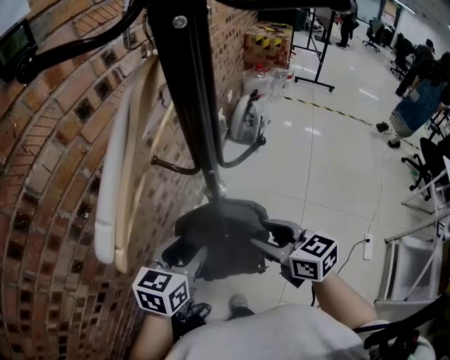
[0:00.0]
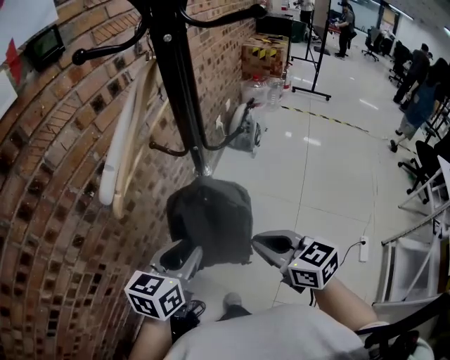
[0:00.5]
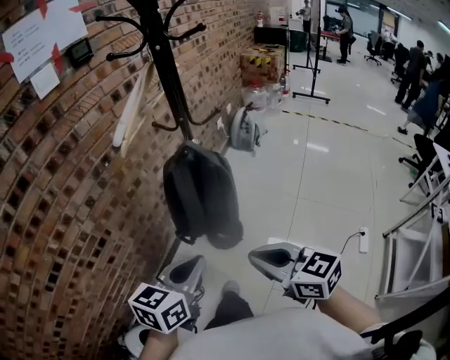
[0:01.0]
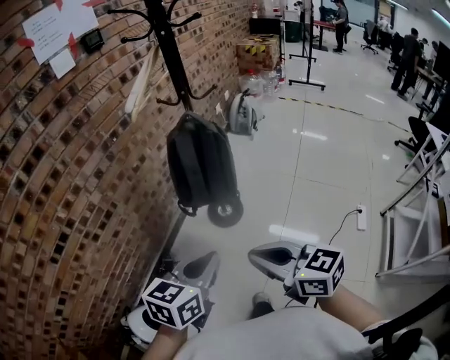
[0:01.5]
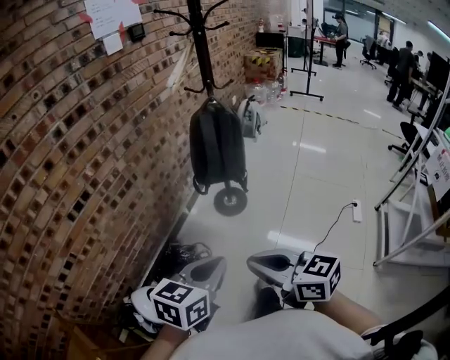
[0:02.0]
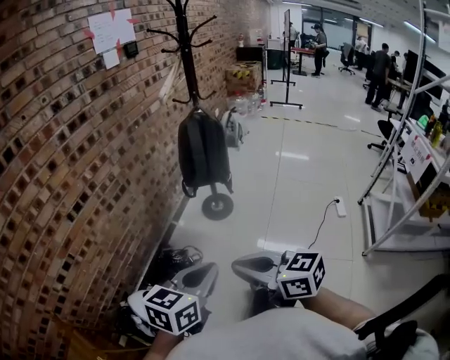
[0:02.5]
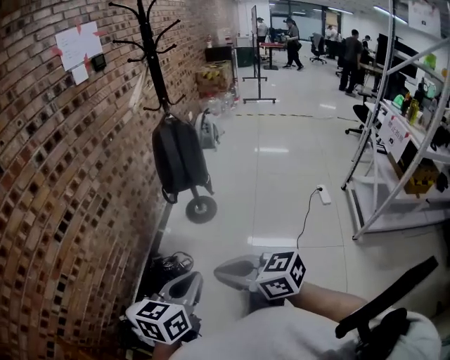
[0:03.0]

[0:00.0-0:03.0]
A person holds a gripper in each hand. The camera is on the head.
0:00.0 to 0:01.5: The two grippers travel together, backward, roughly 50 cm. The left gripper closes its fingers. The right gripper closes its fingers.
0:01.5 to 0:03.0: Both grippers move backward and to the left, some 30 cm.

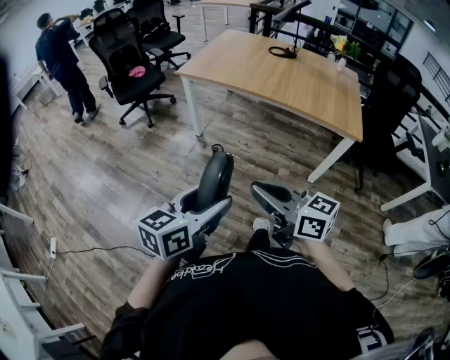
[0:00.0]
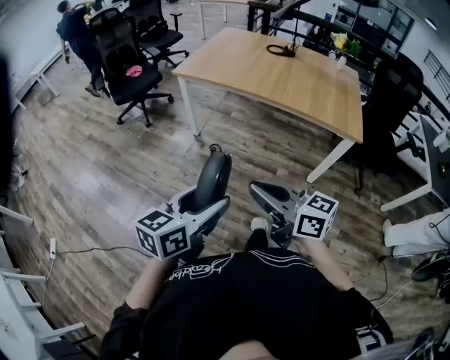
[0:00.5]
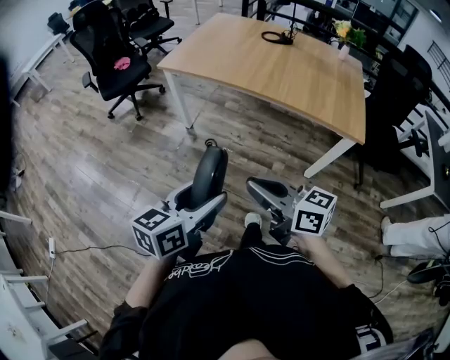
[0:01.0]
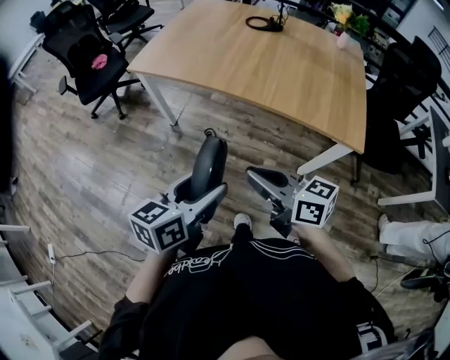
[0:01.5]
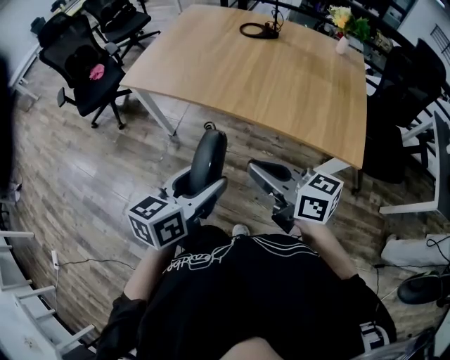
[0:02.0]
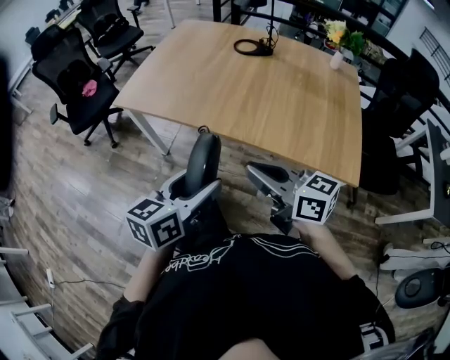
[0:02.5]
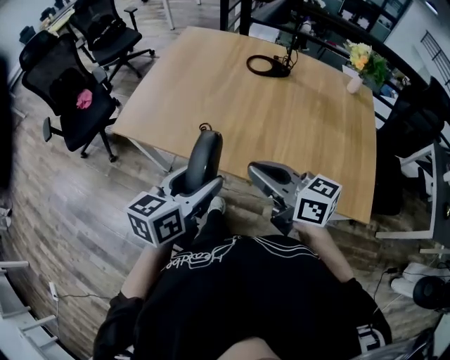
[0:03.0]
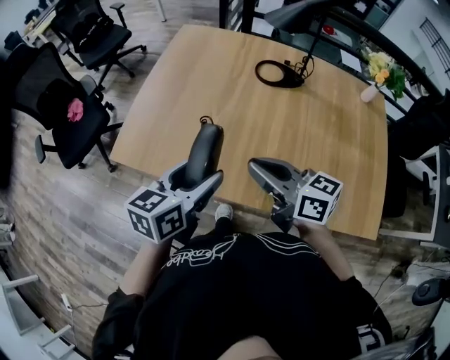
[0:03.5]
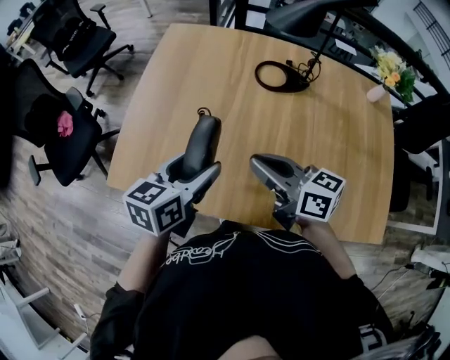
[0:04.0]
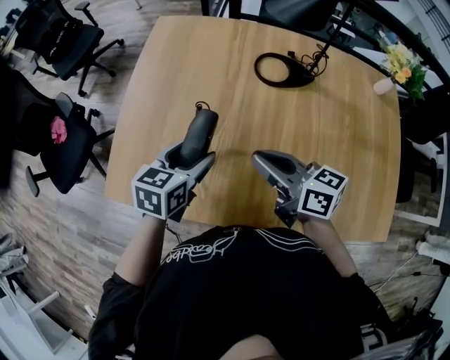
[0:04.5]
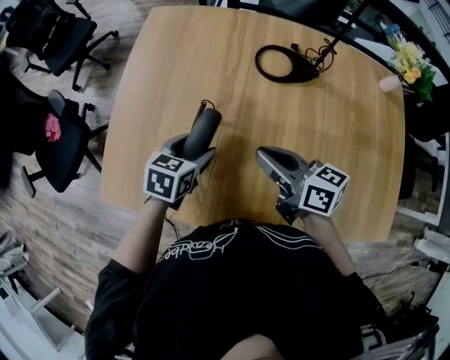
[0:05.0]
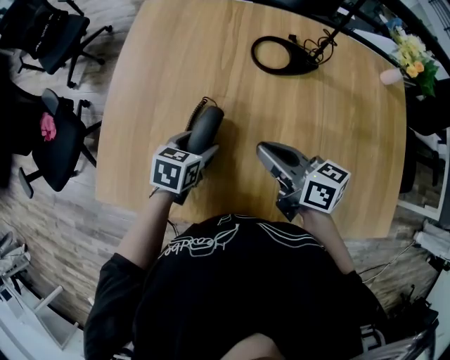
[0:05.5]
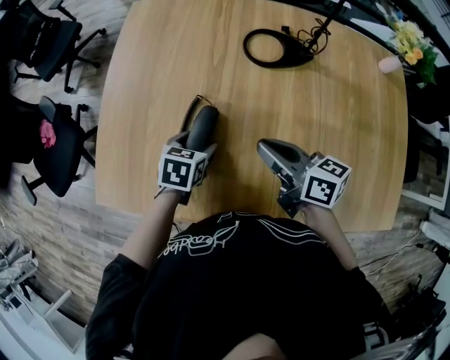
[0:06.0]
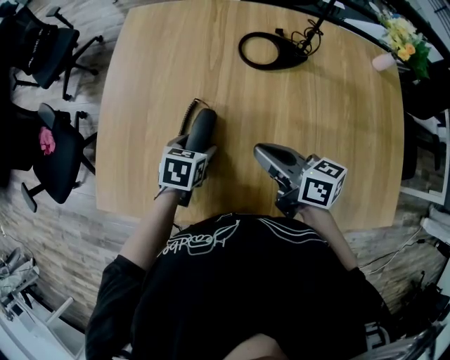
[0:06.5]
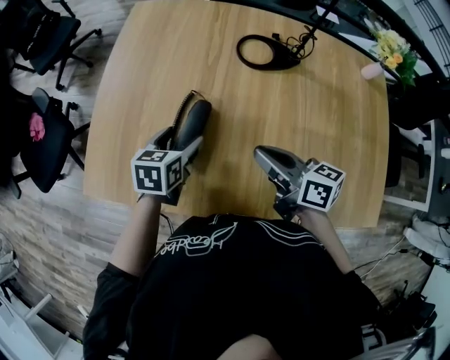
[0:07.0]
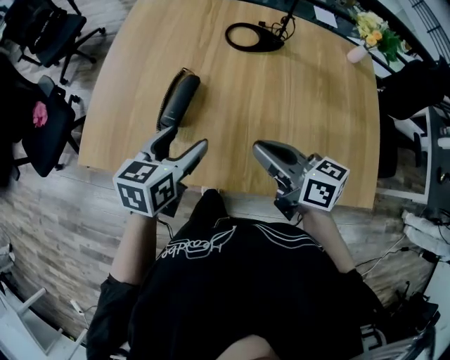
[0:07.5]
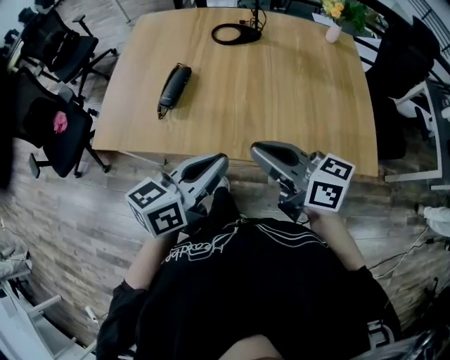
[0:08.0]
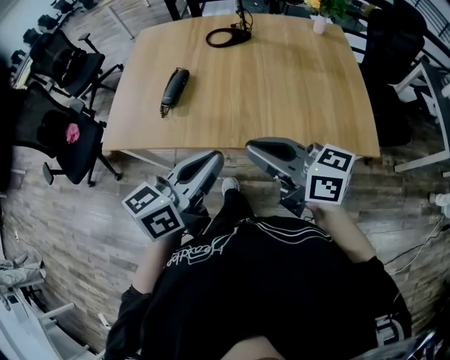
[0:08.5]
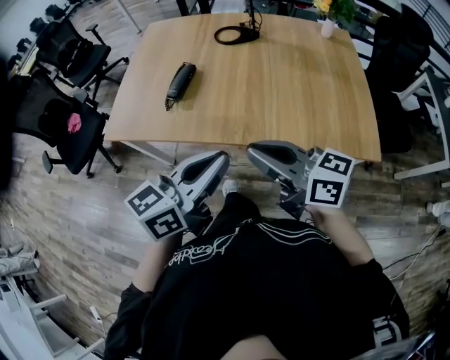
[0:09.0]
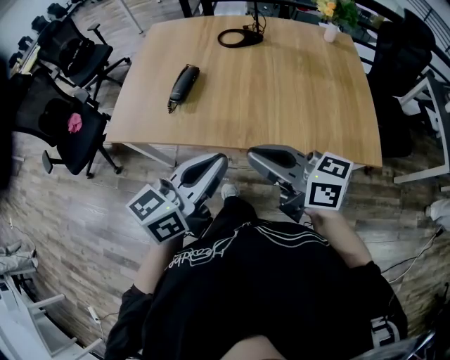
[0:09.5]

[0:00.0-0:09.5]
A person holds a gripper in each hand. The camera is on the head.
0:00.0 to 0:02.0: Both grippers move forward and to the right, roughly 40 cm.
0:02.0 to 0:04.0: Both grippers are carried forward, roughly 50 cm.
0:04.0 to 0:05.5: The right gripper moves downward and forward, some 10 cm. The left gripper is displaced downward and forward by some 20 cm, and swivels roughly 30 degrees.
0:05.5 to 0:07.5: The right gripper moves backward, approximately 15 cm. Meanwhile the left gripper moves upward and backward, some 20 cm.
0:07.5 to 0:09.5: Both grippers travel together backward and upward, approximately 25 cm. The left gripper swivels some 30 degrees, and closes up.

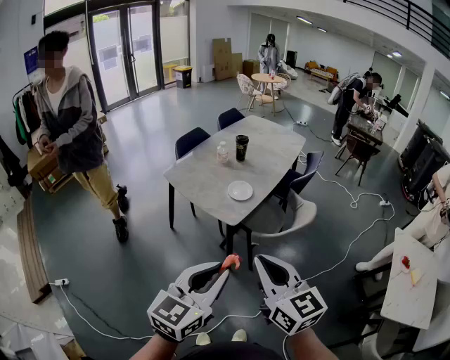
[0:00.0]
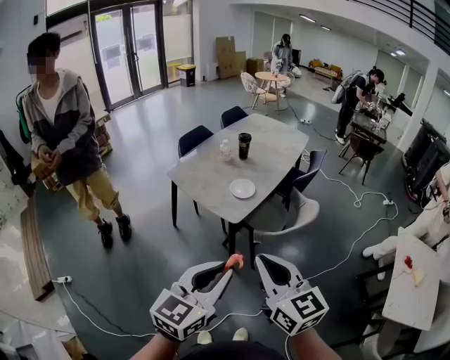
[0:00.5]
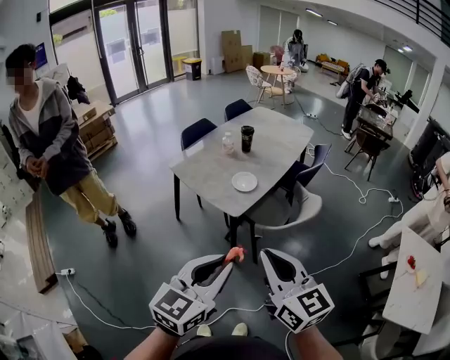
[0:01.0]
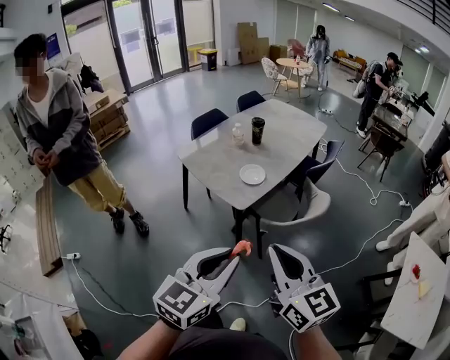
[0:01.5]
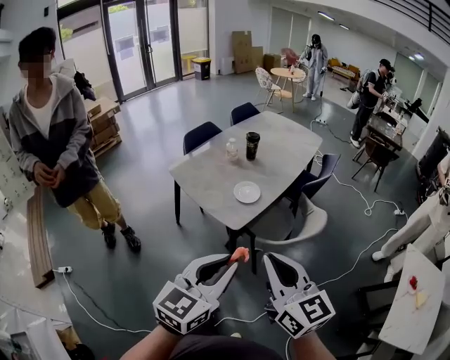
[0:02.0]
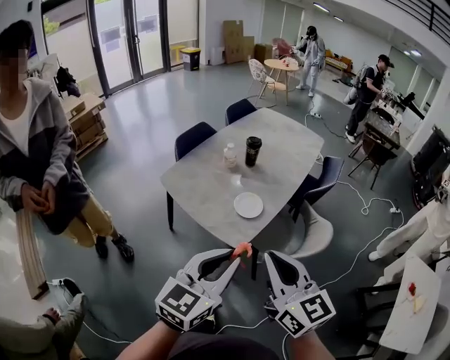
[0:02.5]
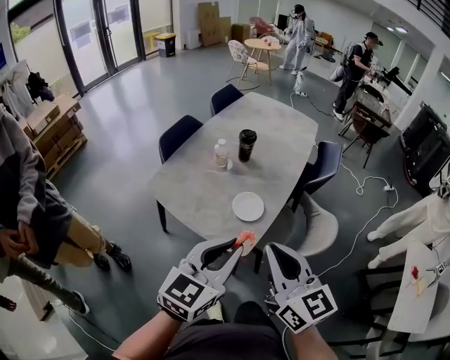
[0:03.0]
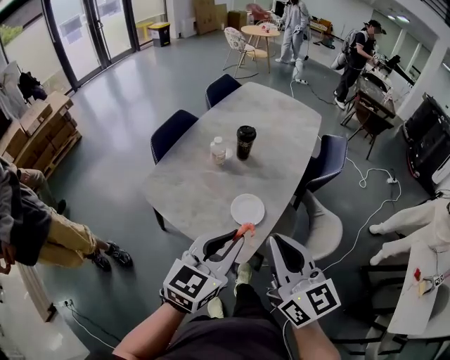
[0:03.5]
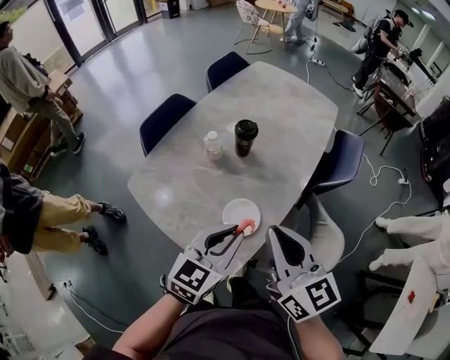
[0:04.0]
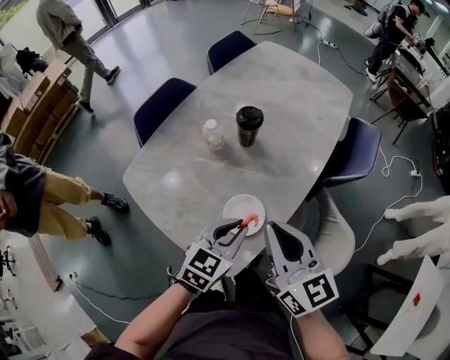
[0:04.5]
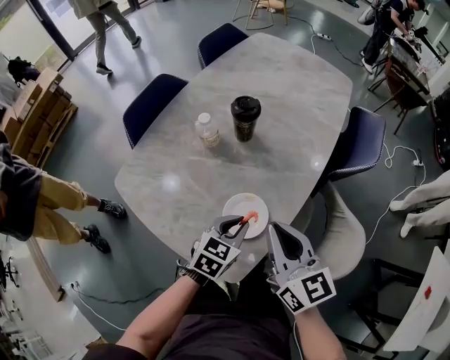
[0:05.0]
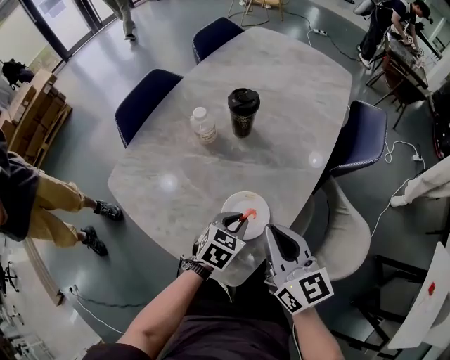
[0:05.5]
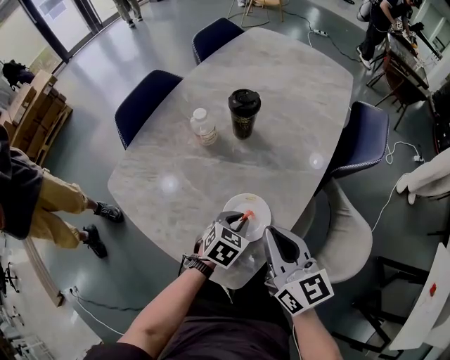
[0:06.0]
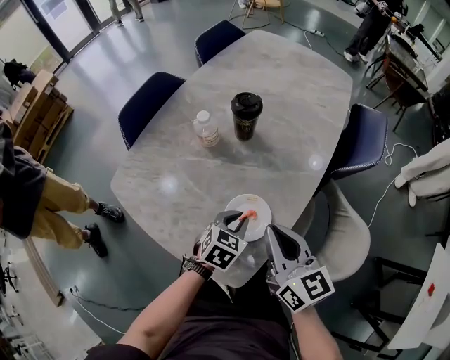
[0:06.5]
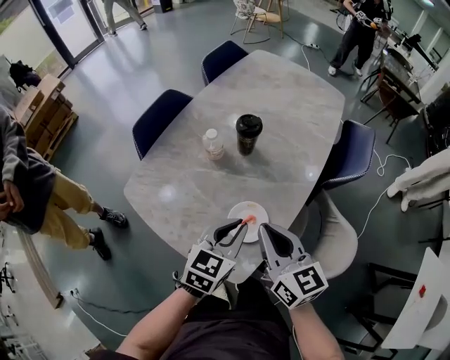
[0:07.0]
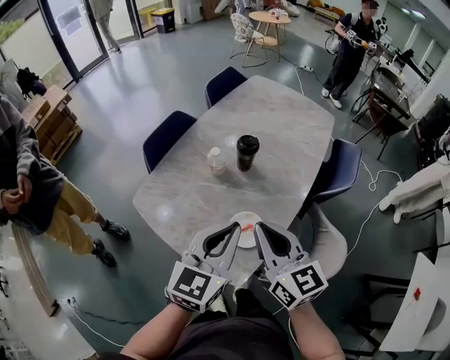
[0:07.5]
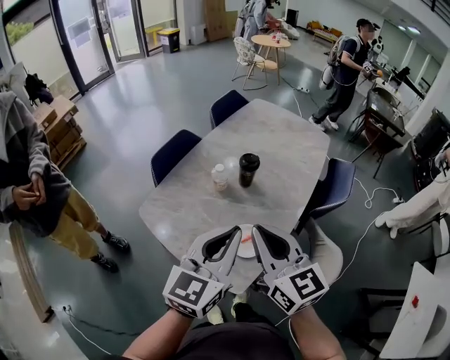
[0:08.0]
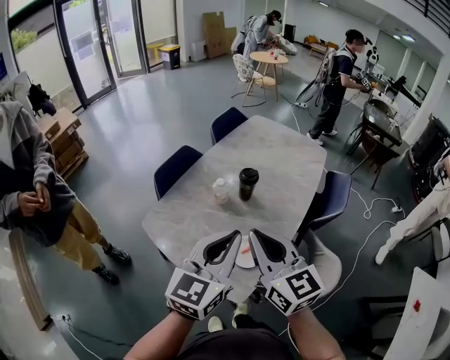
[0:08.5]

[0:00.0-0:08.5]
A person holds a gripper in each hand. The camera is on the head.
0:00.0 to 0:02.0: The grippers both shift forward and to the right by about 10 cm.
0:02.0 to 0:04.0: The pair of grippers is taken forward, about 50 cm.
0:04.0 to 0:06.5: Both grippers move downward, roughly 25 cm. The left gripper swivels approximately 30 degrees.
0:06.5 to 0:08.5: The left gripper travels upward by roughly 40 cm, and angles its fingers upward, by roughly 40 degrees. The right gripper travels upward by roughly 25 cm.

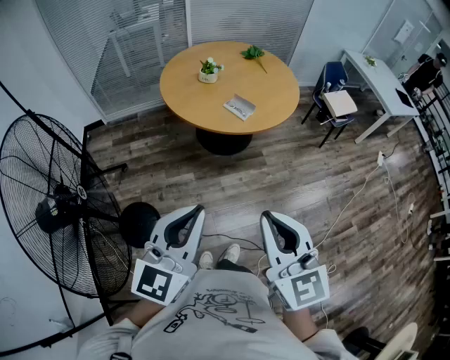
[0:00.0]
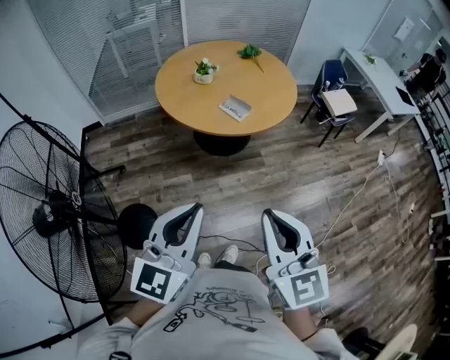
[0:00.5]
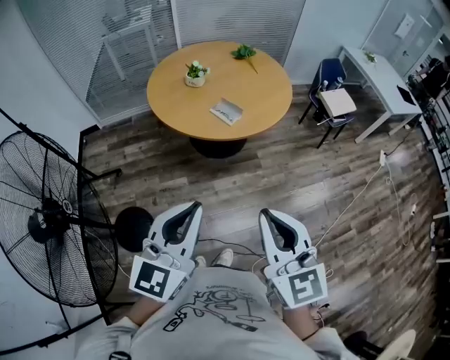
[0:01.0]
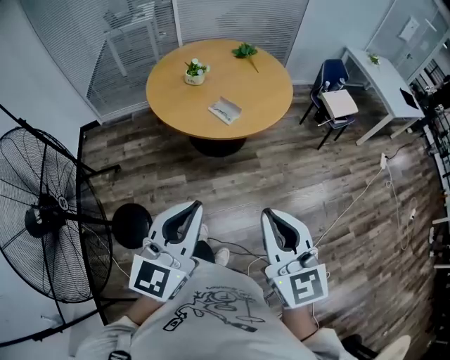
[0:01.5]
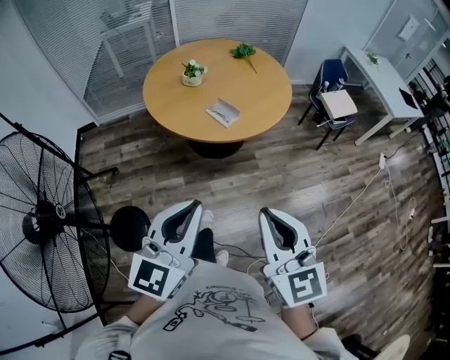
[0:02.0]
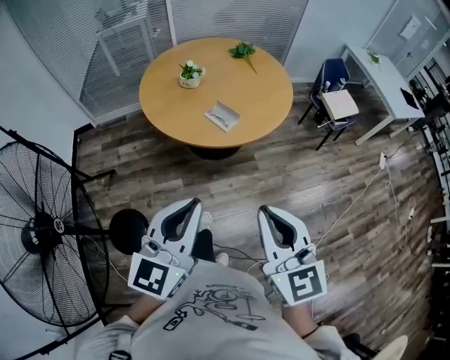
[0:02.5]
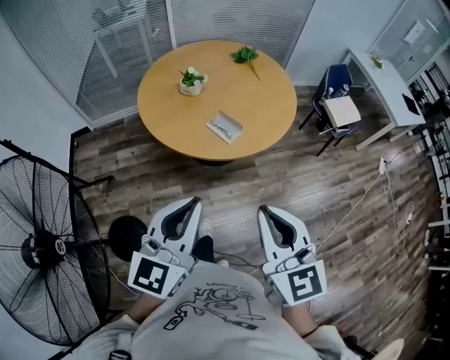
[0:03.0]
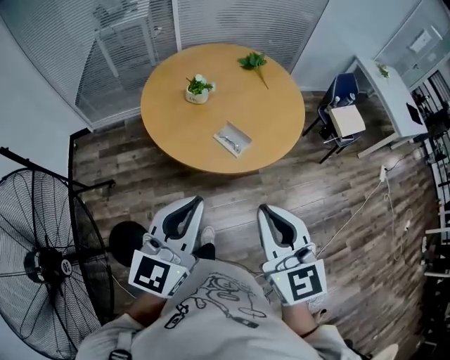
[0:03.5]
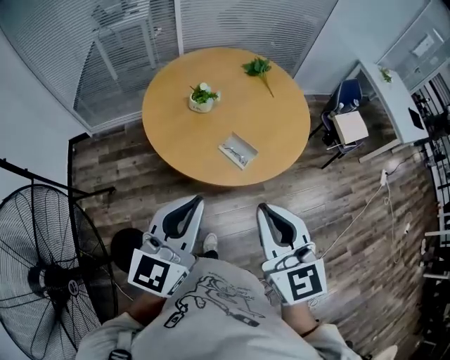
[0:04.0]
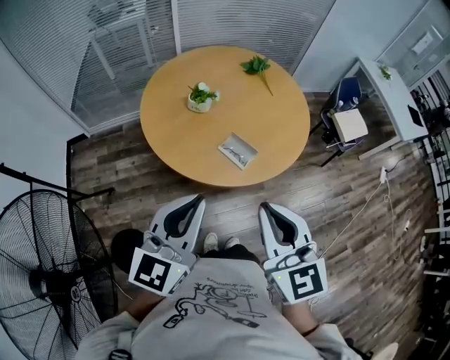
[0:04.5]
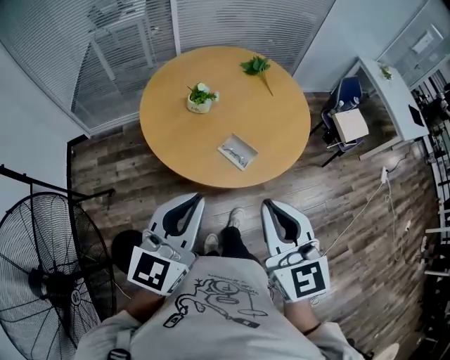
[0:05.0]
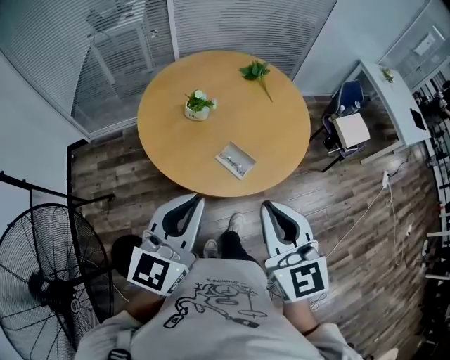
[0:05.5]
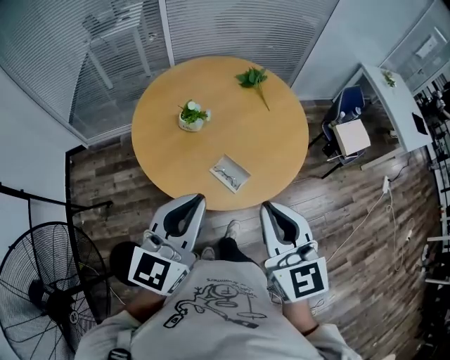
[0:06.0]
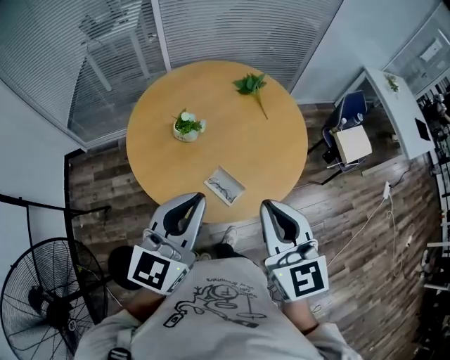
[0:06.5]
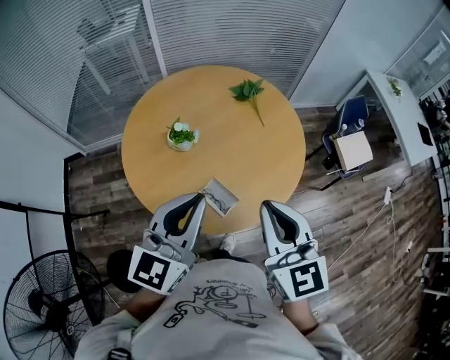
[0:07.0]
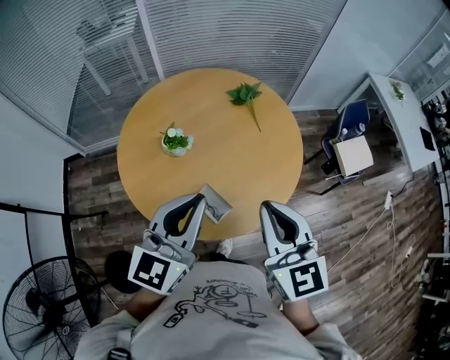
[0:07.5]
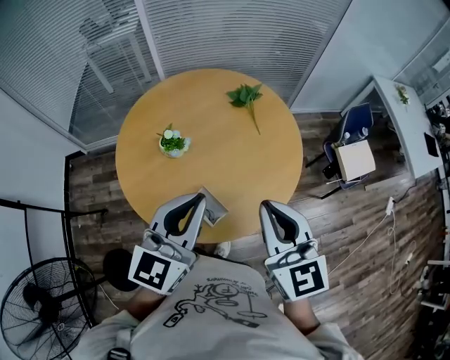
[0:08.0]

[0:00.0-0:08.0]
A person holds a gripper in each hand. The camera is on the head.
0:00.0 to 0:02.0: The left gripper goes approximately 15 cm forward and to the right, while the right gripper shifts about 15 cm to the right and forward.
0:02.0 to 0:04.0: The two grippers go approximately 30 cm forward.
0:04.0 to 0:06.0: The right gripper moves forward and to the right, roughly 15 cm. Meanwhile the left gripper goes about 15 cm forward.
0:06.0 to 0:08.0: The grippers both shift forward and to the right by roughly 20 cm.
